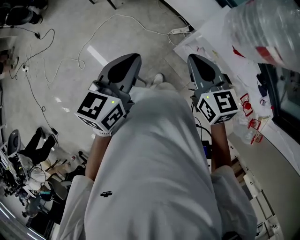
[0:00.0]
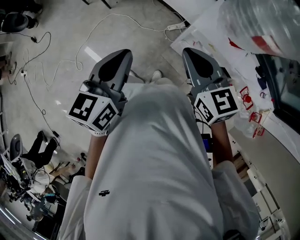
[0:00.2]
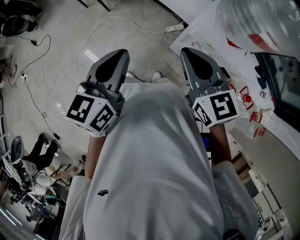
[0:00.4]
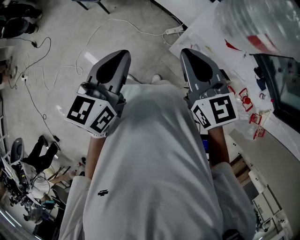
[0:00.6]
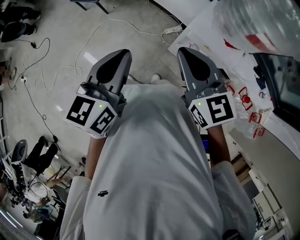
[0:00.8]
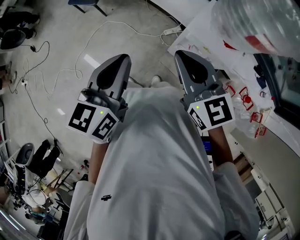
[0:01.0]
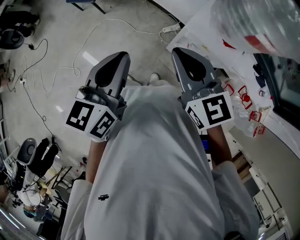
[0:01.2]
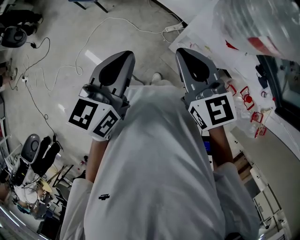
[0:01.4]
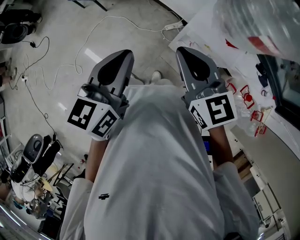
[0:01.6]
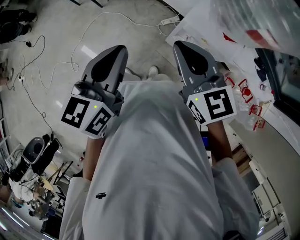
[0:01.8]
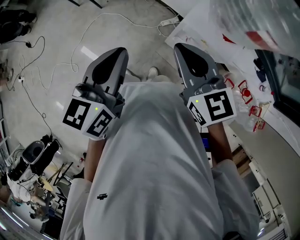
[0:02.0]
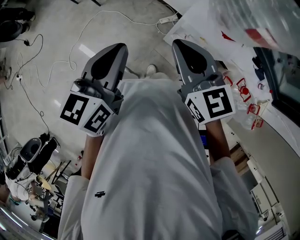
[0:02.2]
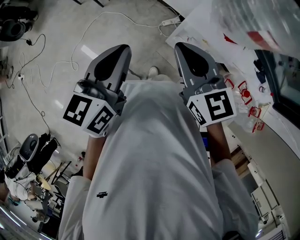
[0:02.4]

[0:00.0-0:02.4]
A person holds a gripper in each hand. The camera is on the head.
0:00.0 to 0:01.2: The right gripper heads upward, covering approximately 5 cm.
0:01.2 to 0:02.4: The grippers move only a little.

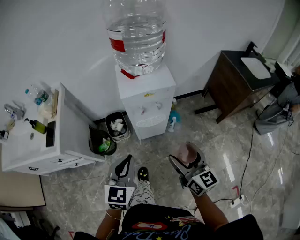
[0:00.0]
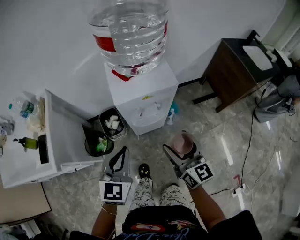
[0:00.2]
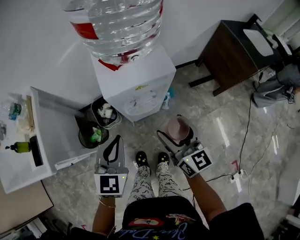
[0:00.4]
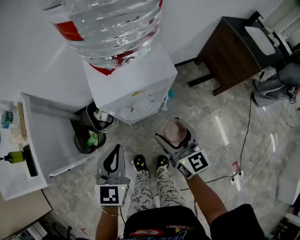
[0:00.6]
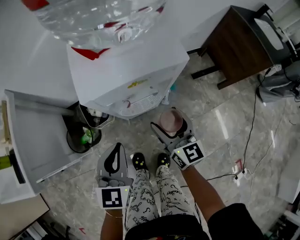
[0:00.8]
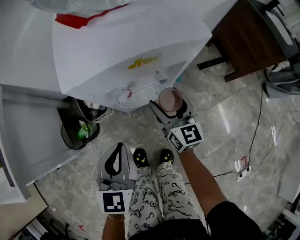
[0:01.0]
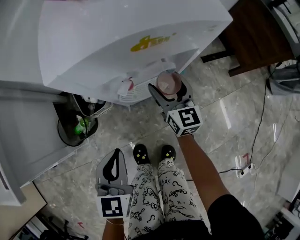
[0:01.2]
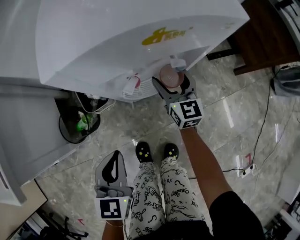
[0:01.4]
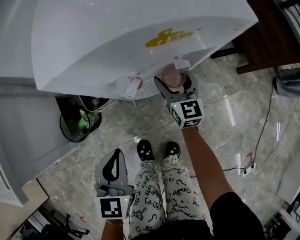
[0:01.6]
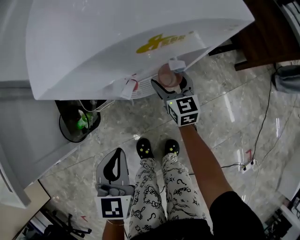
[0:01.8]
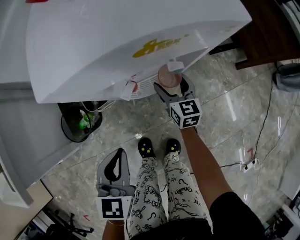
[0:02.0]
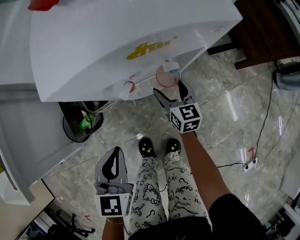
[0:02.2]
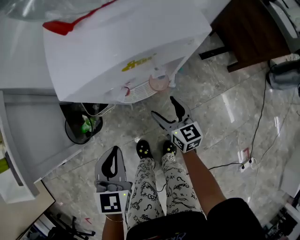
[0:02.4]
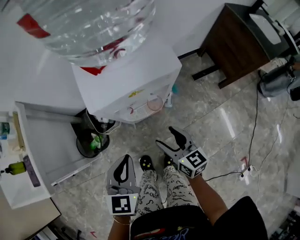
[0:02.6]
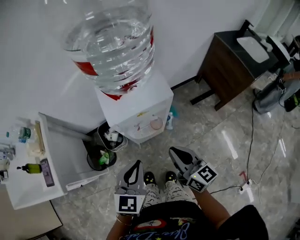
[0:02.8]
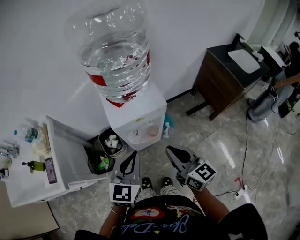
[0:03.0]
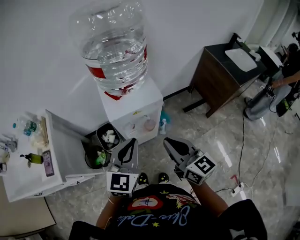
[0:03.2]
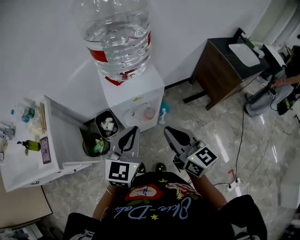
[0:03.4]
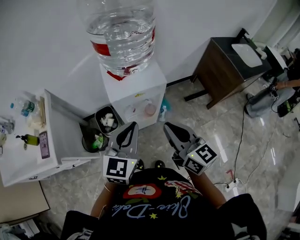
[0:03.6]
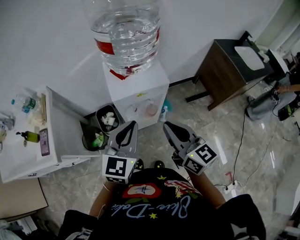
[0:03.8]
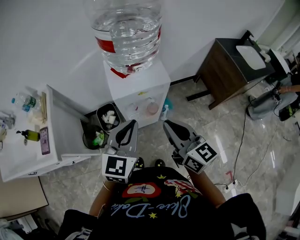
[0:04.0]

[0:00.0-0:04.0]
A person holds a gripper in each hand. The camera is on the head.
0:00.0 to 0:01.4: The left gripper heads downward and forward, covering roughly 35 cm, while the right gripper heads downward and forward, covering some 50 cm.
0:01.4 to 0:02.6: The right gripper goes approximately 25 cm backward and upward, and rotates about 20 degrees, while the left gripper heads upward, covering approximately 15 cm.
0:02.6 to 0:04.0: Both grippers move upward, roughly 25 cm. The right gripper closes its fingers.

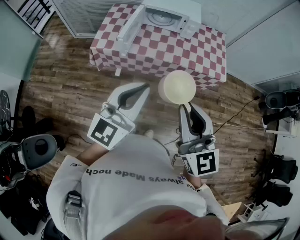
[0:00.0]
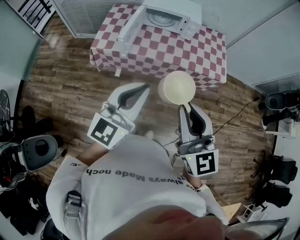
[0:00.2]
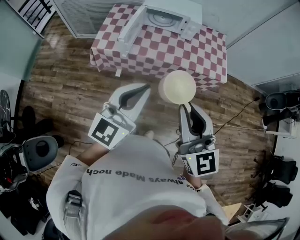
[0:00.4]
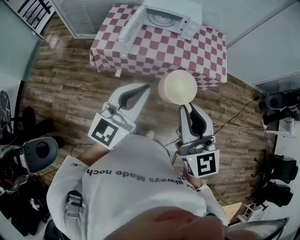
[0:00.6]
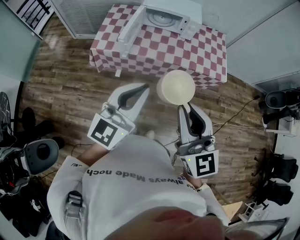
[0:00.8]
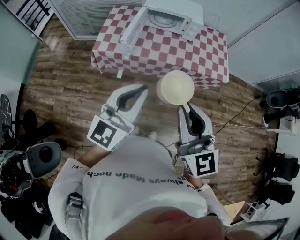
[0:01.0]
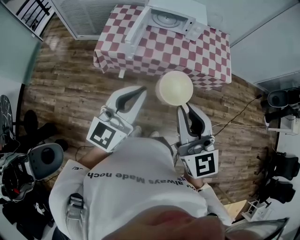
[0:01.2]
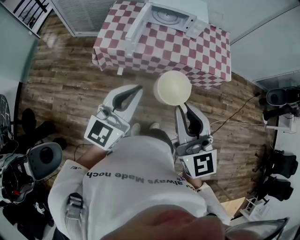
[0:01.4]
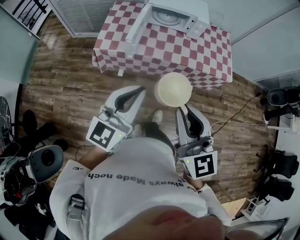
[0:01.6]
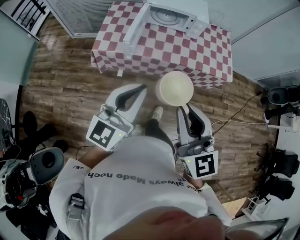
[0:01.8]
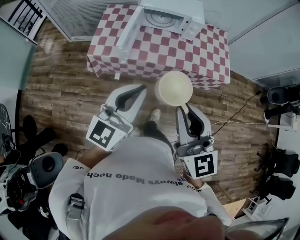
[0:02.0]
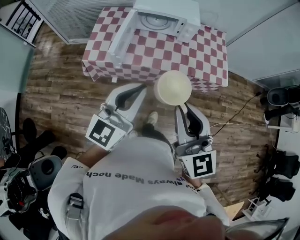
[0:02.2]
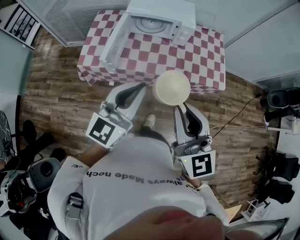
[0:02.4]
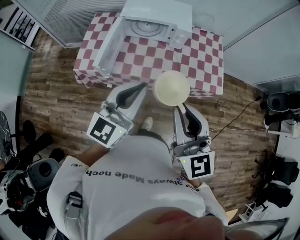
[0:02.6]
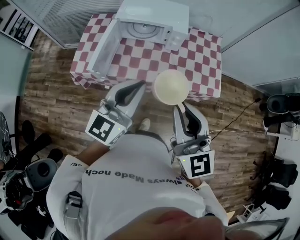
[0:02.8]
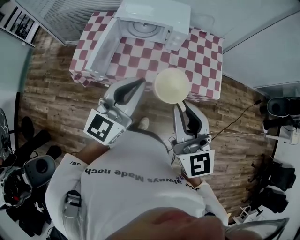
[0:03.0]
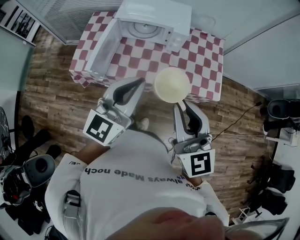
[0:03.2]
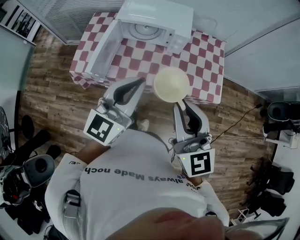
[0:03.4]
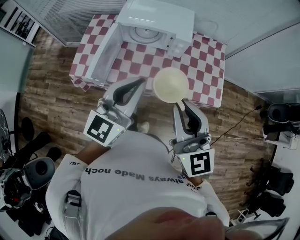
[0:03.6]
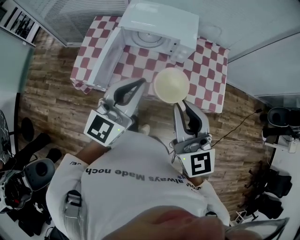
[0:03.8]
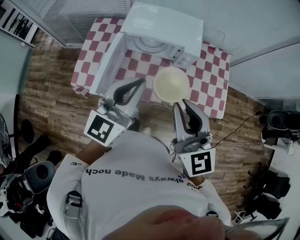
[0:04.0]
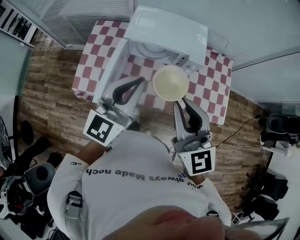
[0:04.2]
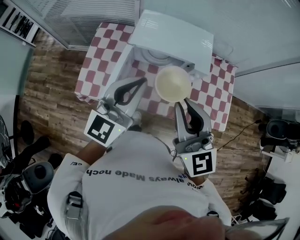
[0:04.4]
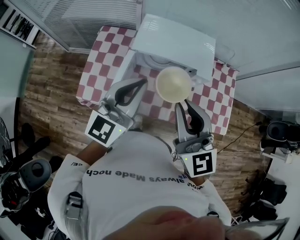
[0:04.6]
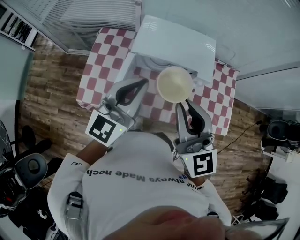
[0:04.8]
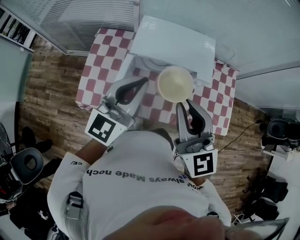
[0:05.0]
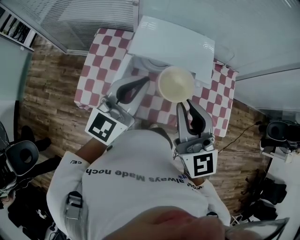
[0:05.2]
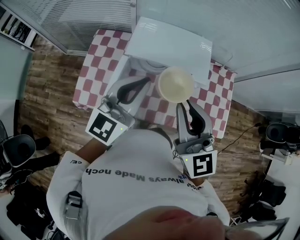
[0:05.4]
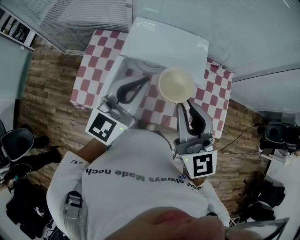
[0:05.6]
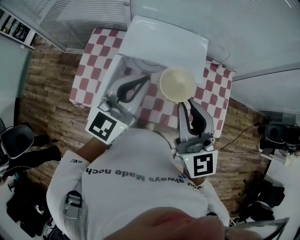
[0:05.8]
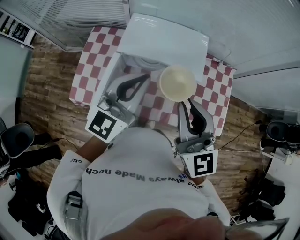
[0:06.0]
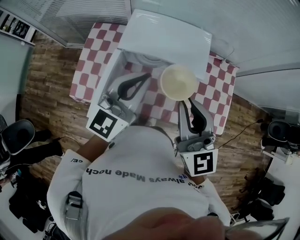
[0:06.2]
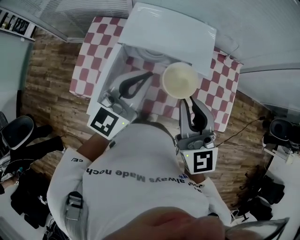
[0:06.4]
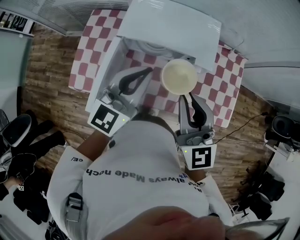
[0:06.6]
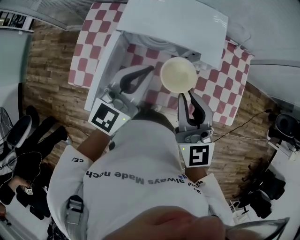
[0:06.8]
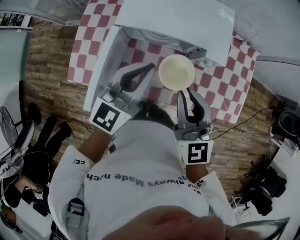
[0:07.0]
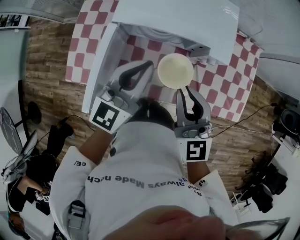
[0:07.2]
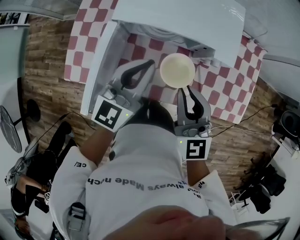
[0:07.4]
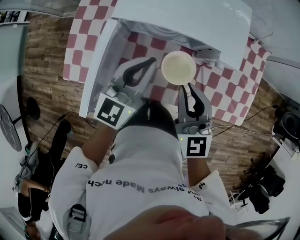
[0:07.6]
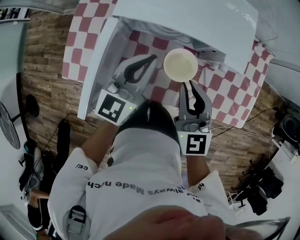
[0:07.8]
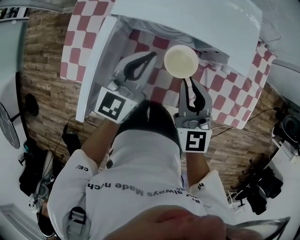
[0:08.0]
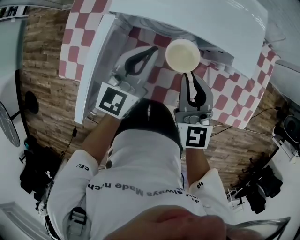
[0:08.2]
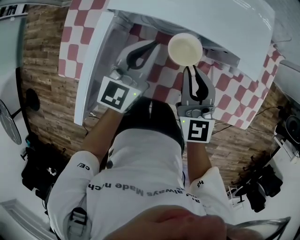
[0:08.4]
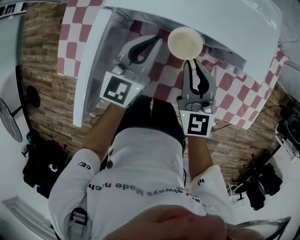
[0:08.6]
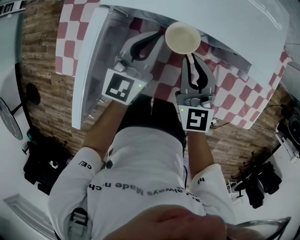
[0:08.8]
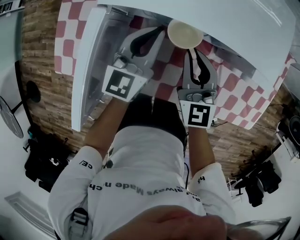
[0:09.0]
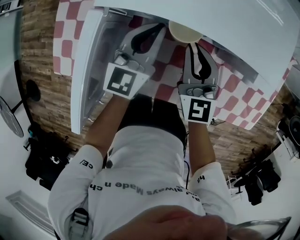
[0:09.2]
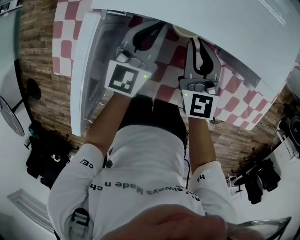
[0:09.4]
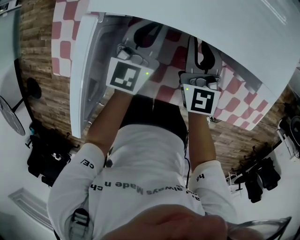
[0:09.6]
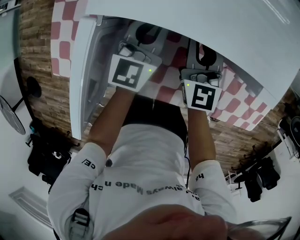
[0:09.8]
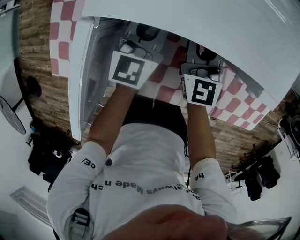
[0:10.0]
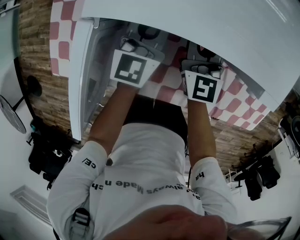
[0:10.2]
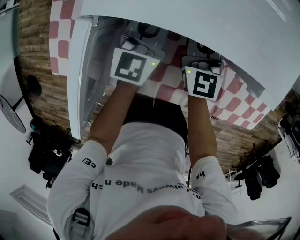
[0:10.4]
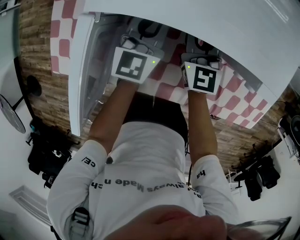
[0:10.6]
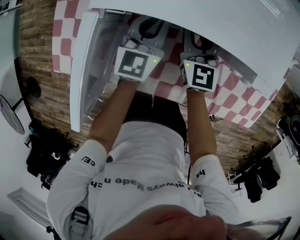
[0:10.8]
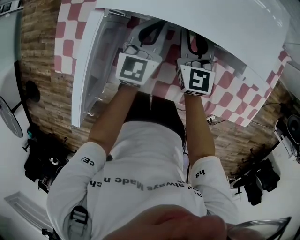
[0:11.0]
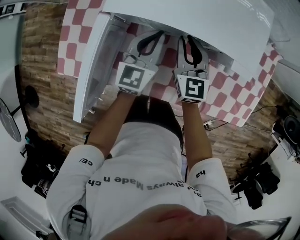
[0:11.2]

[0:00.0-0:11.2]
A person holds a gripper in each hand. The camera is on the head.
0:00.0 to 0:01.6: Both grippers move to the left, about 10 cm.
0:01.6 to 0:03.2: Both grippers travel together forward and to the right, about 35 cm.
0:03.2 to 0:04.8: Both grippers travel together forward and to the left, roughly 30 cm.
0:04.8 to 0:06.4: Both grippers travel together to the right, approximately 10 cm.
0:06.4 to 0:08.0: The two grippers go roughly 25 cm downward.
0:08.0 to 0:09.6: Both grippers move downward and forward, some 20 cm.
0:09.6 to 0:11.2: The left gripper ends up approximately 5 cm from where it was.

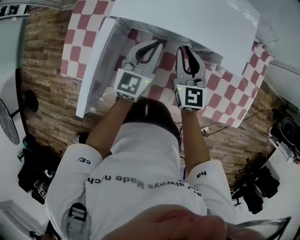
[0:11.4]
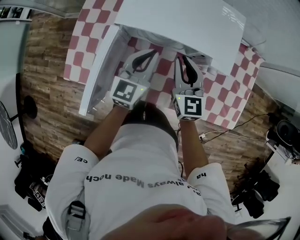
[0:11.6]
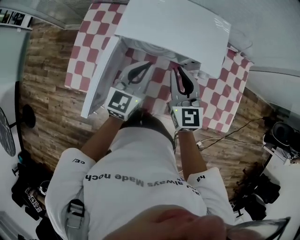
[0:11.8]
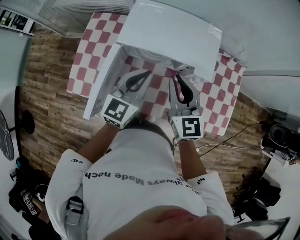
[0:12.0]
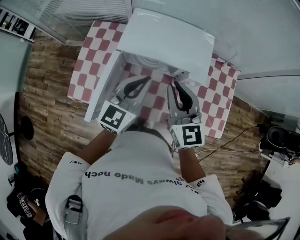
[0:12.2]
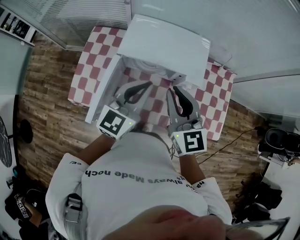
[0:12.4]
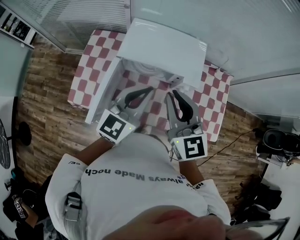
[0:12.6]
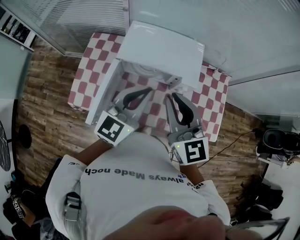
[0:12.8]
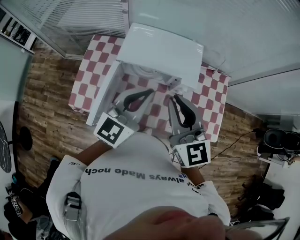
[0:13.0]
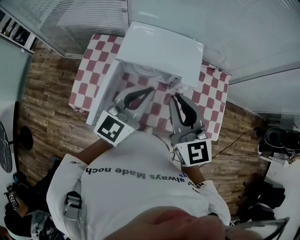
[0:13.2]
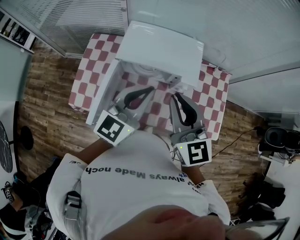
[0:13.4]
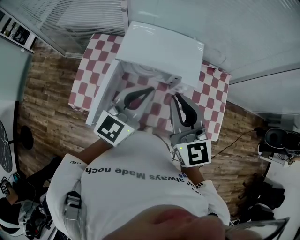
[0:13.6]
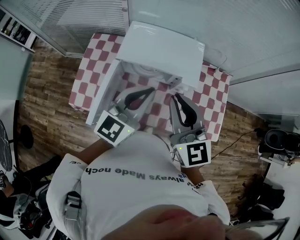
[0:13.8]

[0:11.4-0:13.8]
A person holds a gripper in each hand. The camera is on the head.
0:11.4 to 0:12.6: The grippers both shift upward and backward by roughly 30 cm.
0:12.6 to 0:13.8: The grippers stay close to where they were, moving slightly.

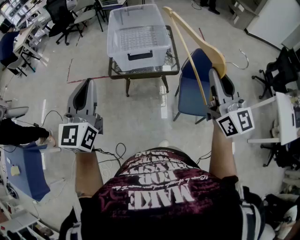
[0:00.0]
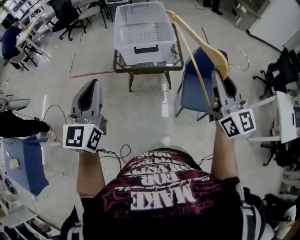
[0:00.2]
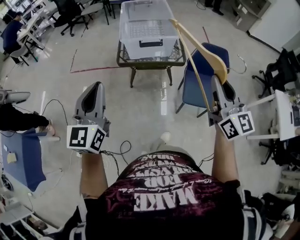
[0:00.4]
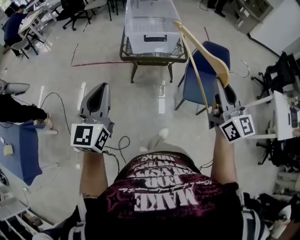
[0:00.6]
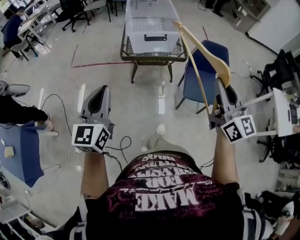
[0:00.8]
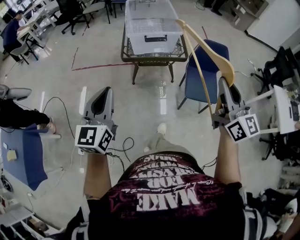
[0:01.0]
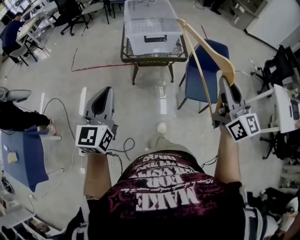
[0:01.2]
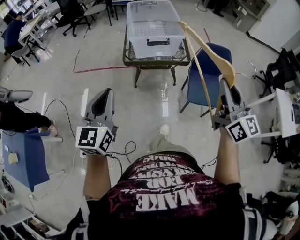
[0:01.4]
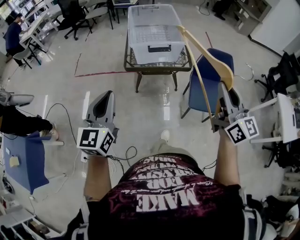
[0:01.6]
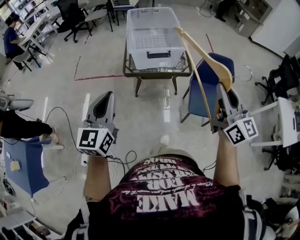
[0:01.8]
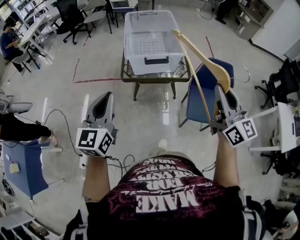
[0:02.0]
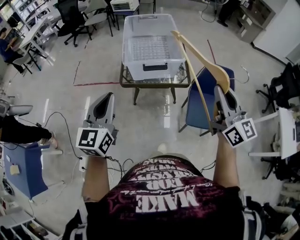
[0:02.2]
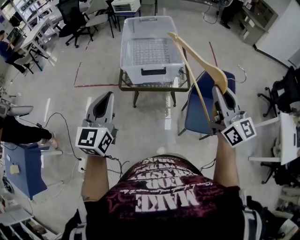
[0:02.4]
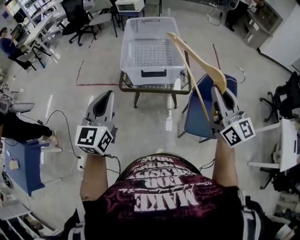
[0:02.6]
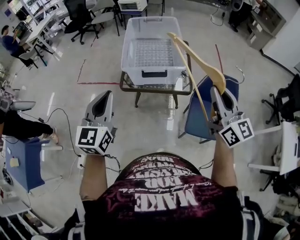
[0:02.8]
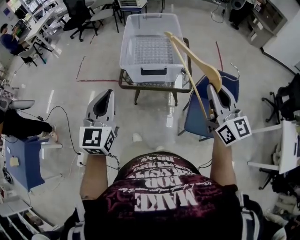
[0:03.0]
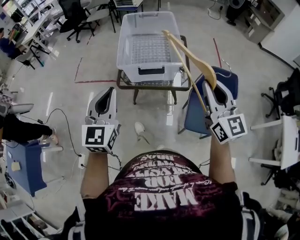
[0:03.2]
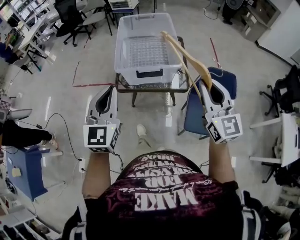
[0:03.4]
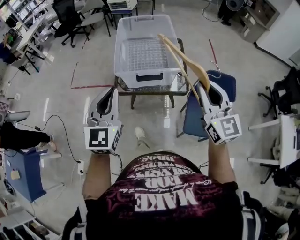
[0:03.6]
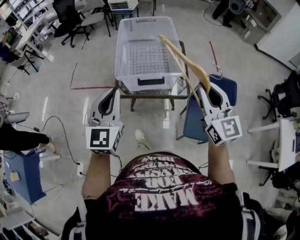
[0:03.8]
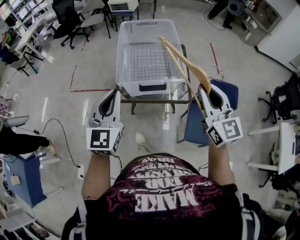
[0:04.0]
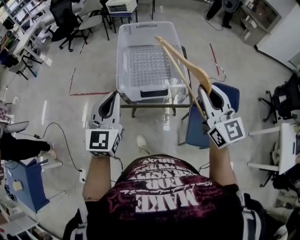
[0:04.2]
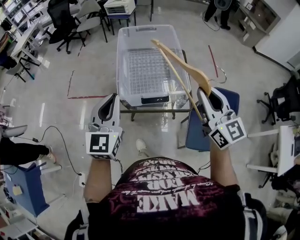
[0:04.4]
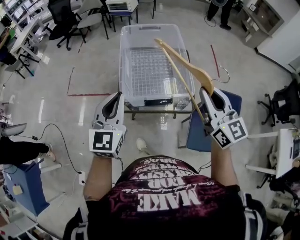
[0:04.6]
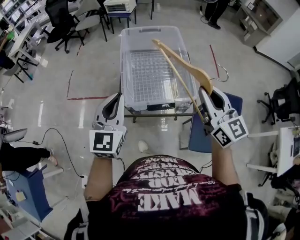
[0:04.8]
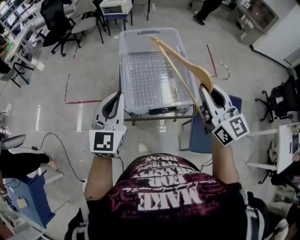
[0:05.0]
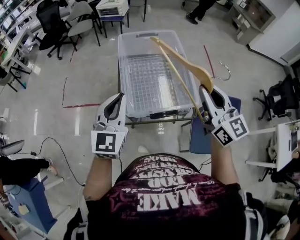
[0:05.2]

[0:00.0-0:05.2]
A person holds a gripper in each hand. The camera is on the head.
0:00.0 to 0:01.8: The left gripper heads downward and to the left, covering roughly 10 cm, and travels backward and back again, about 15 cm each way. The right gripper goes some 5 cm to the left, and reaches approximately 15 cm backward, then returns.
0:01.8 to 0:03.4: The left gripper heads forward and to the right, covering about 20 cm. The right gripper shifts roughly 20 cm forward.
0:03.4 to 0:05.2: The right gripper shifts approximately 25 cm forward and to the left; the left gripper is displaced forward by some 25 cm.
